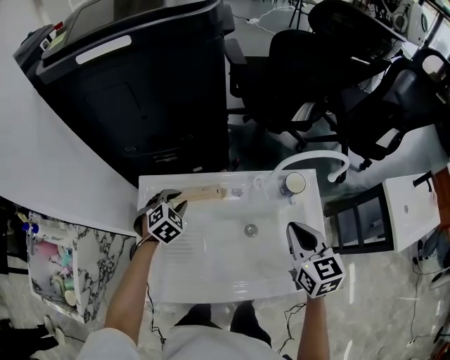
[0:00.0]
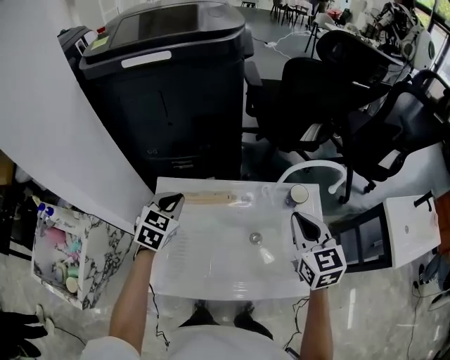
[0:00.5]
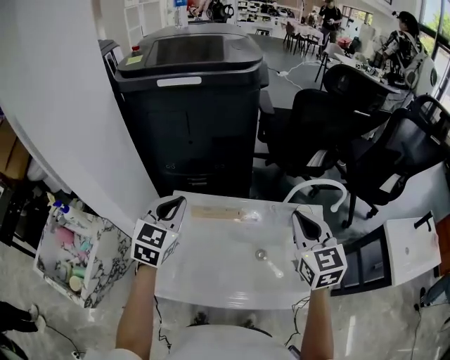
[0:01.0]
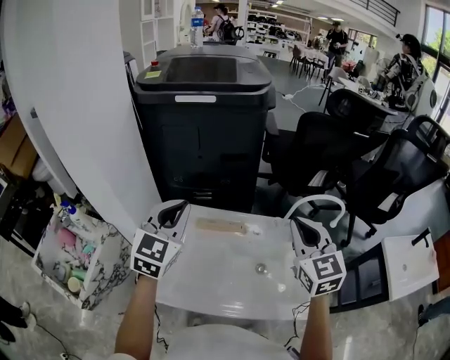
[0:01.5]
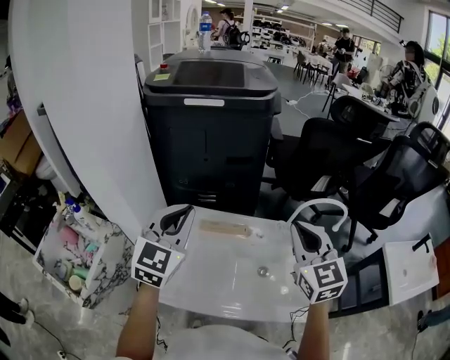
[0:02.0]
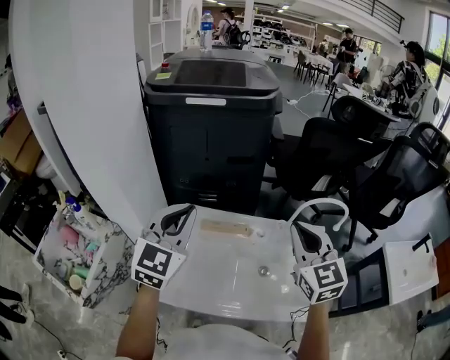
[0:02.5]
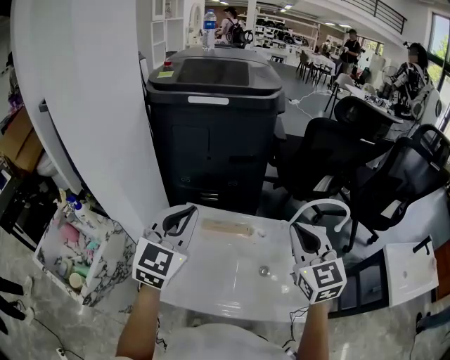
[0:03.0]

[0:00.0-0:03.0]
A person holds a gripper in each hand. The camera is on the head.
0:00.0 to 0:01.5: The right gripper travels upward and to the left by roughly 20 cm, and swivels approximately 30 degrees, while the left gripper moves upward, some 35 cm, angles its fingers upward, by approximately 40 degrees, and closes up.
0:01.5 to 0:03.0: The grippers stay close to where they were, moving slightly.

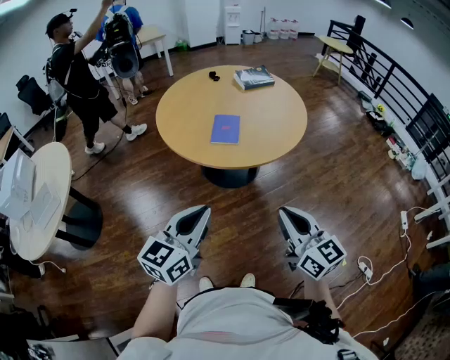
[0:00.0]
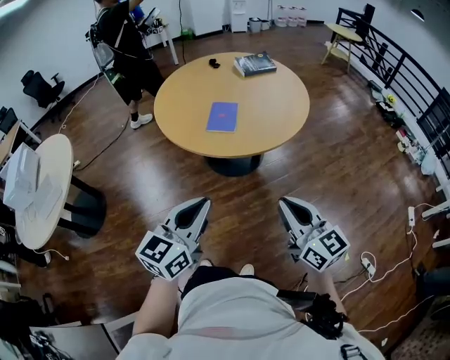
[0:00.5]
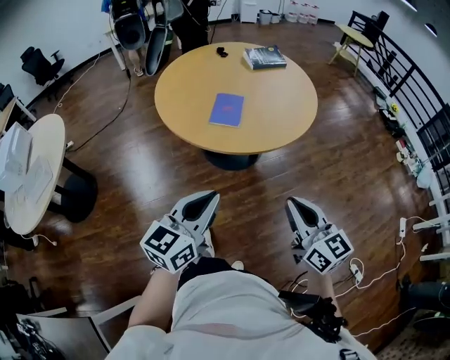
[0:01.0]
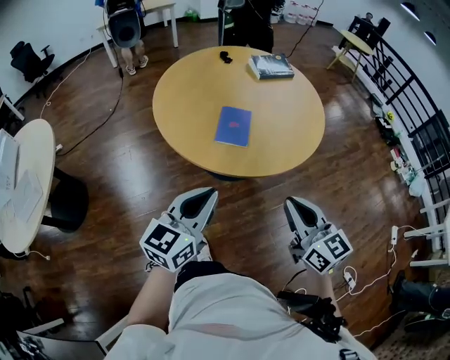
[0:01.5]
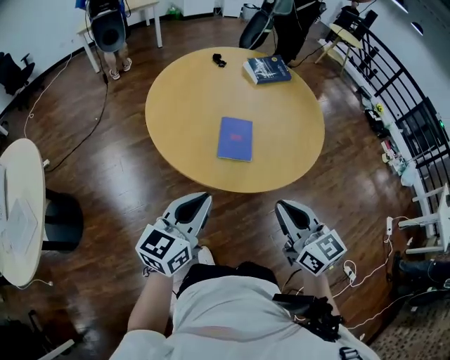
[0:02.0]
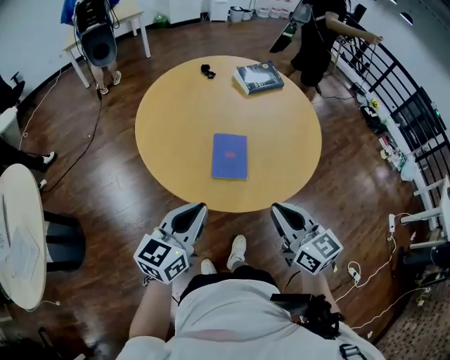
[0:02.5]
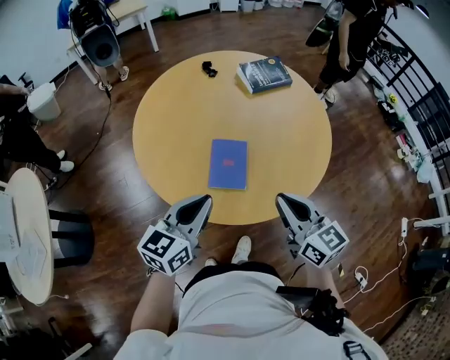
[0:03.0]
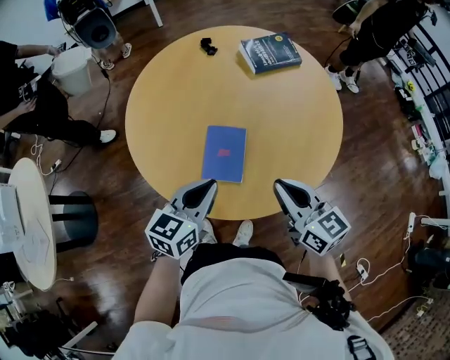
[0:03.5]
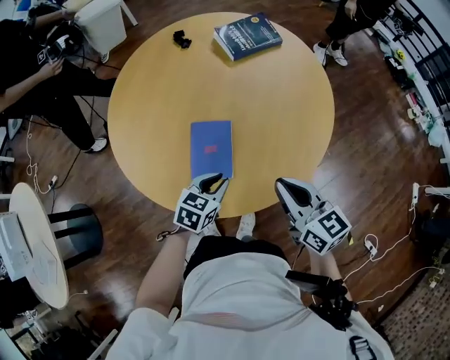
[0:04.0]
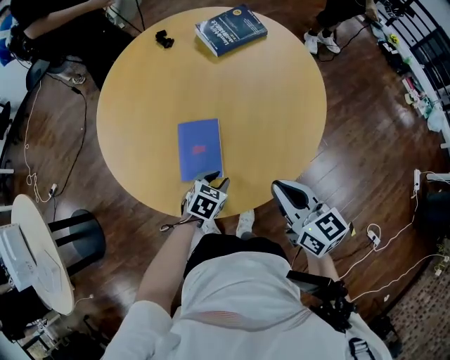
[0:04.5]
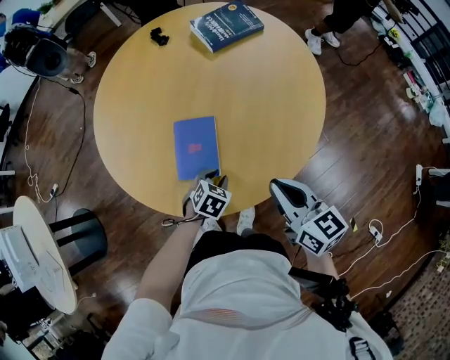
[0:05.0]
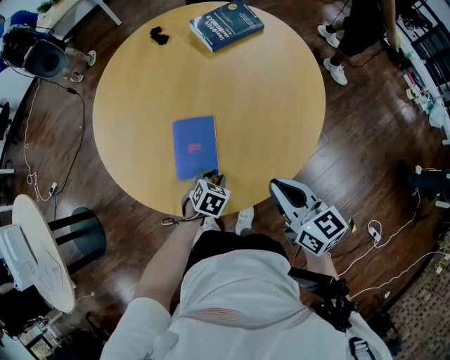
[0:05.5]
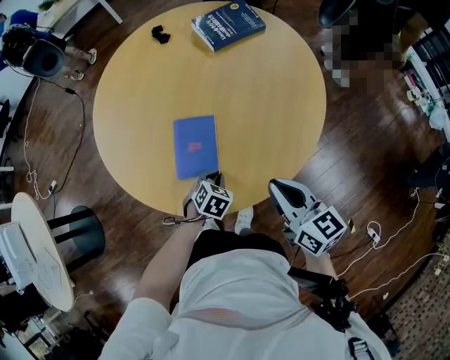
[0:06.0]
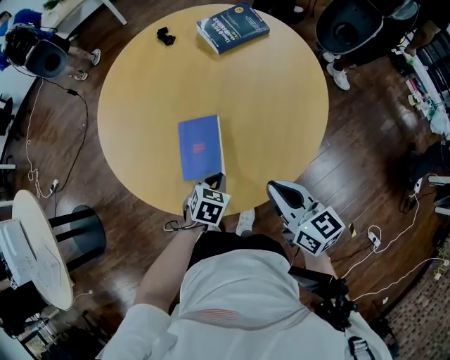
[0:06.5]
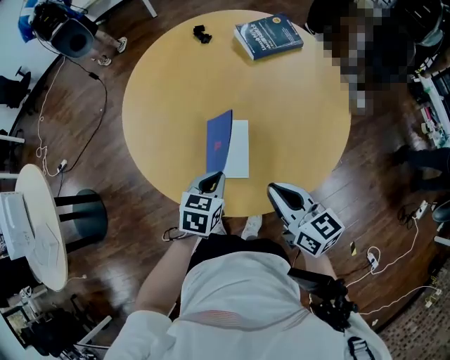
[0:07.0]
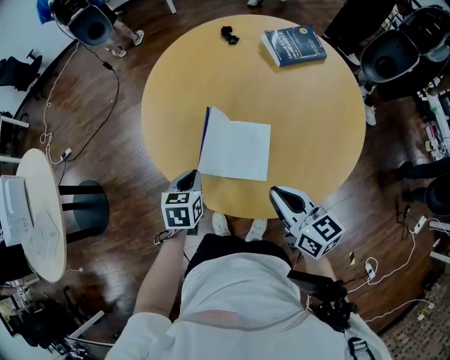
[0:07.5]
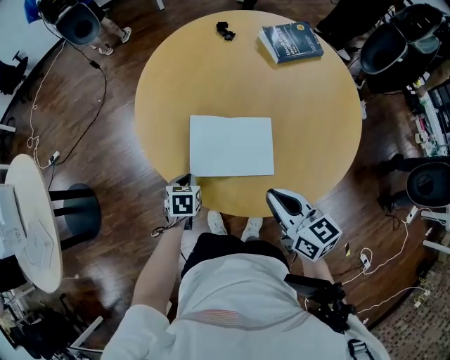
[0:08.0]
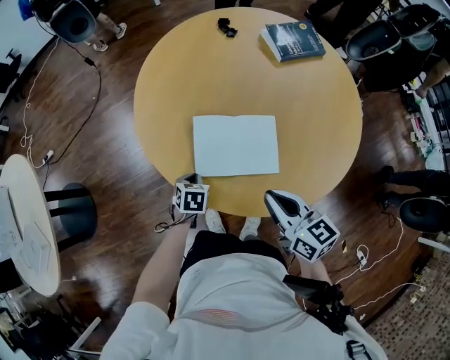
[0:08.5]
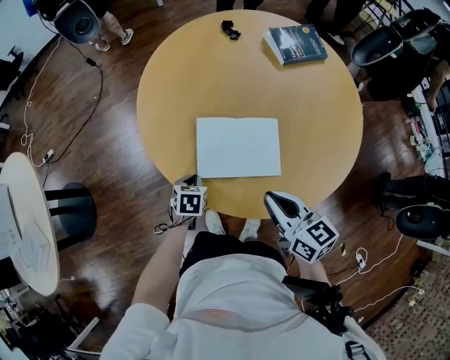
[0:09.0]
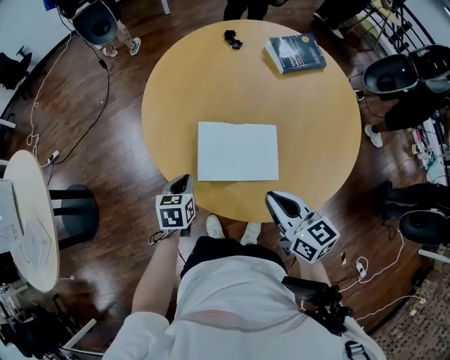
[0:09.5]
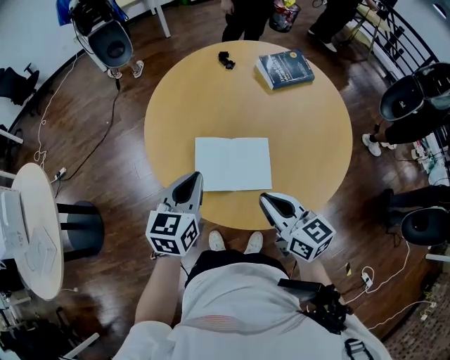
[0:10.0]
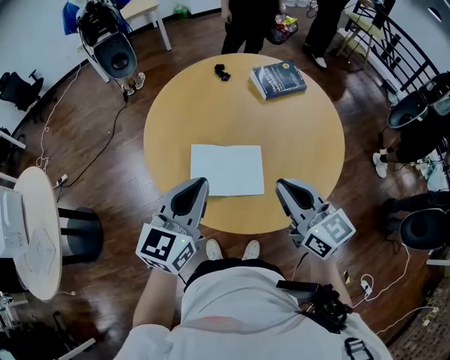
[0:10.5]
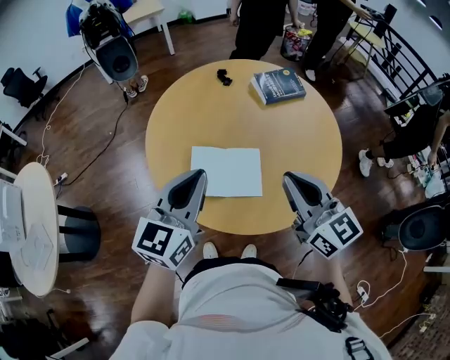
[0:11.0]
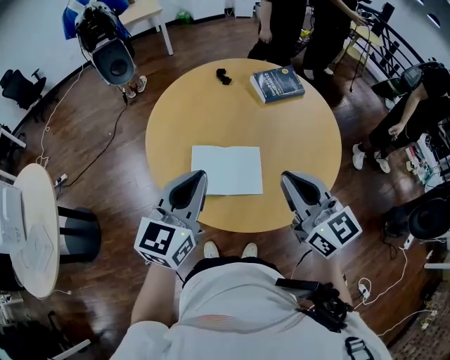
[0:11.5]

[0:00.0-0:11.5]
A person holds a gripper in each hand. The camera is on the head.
0:00.0 to 0:02.0: The right gripper goes roughly 25 cm forward and to the left, while the left gripper travels forward by roughly 25 cm.
0:02.0 to 0:04.0: The left gripper shifts some 40 cm forward, downward and to the right, and tilts its fingers some 40 degrees downward; the right gripper goes some 30 cm forward, to the right and downward.
0:04.0 to 0:06.0: The left gripper heads downward, covering approximately 10 cm, and changes its angle by about 30 degrees.
0:06.0 to 0:07.5: The right gripper shifts approximately 15 cm to the left; the left gripper heads to the left and upward, covering approximately 25 cm, and changes its angle by approximately 40 degrees.
0:07.5 to 0:09.5: The left gripper heads to the left, covering about 5 cm, and travels downward and back again, about 15 cm each way.
0:09.5 to 0:11.5: The left gripper heads upward, covering about 30 cm, and tips its fingers upward by some 40 degrees. Meanwhile the right gripper goes approximately 20 cm upward, and changes its angle by some 30 degrees.

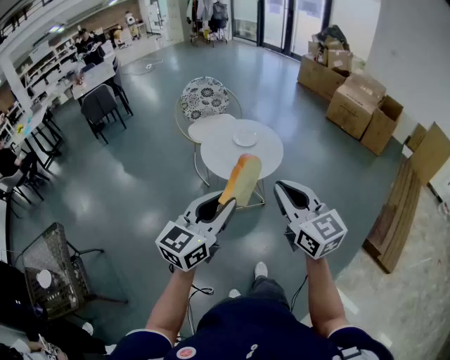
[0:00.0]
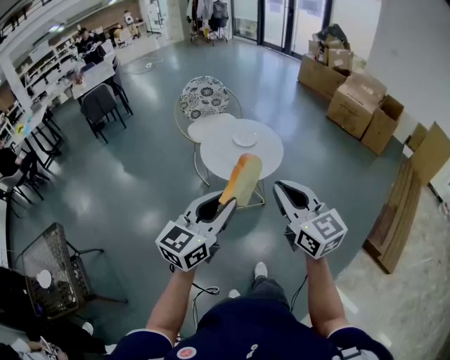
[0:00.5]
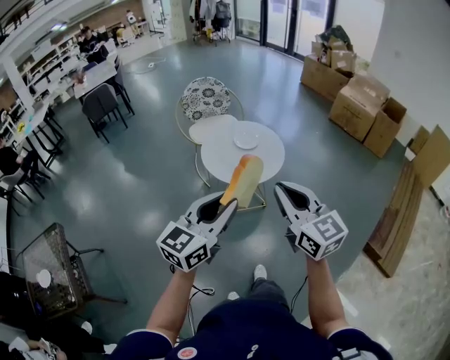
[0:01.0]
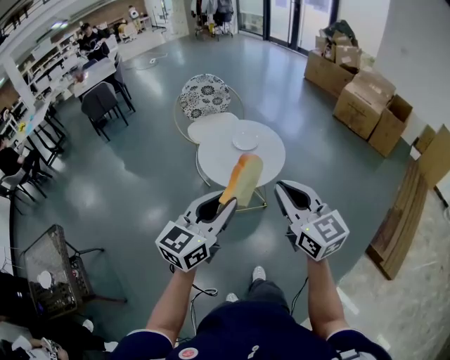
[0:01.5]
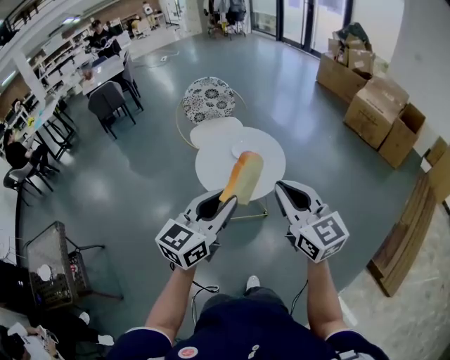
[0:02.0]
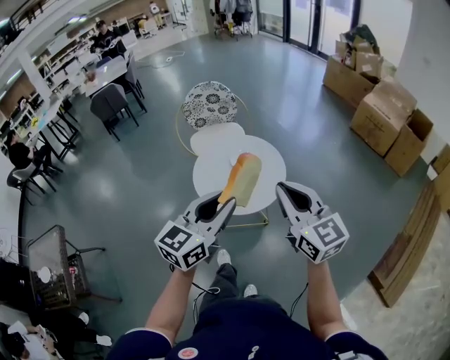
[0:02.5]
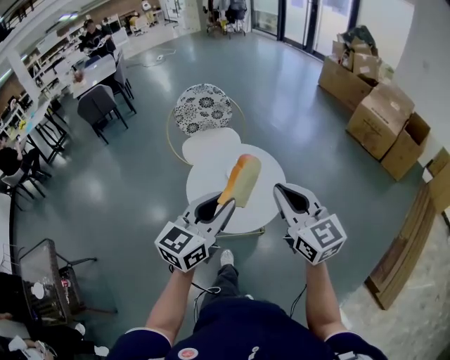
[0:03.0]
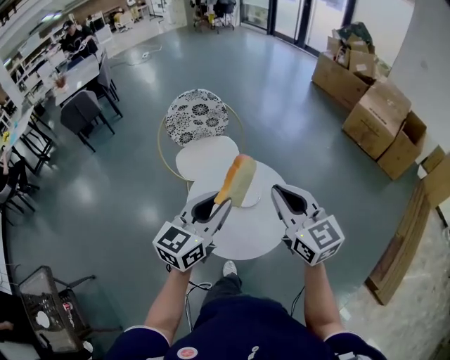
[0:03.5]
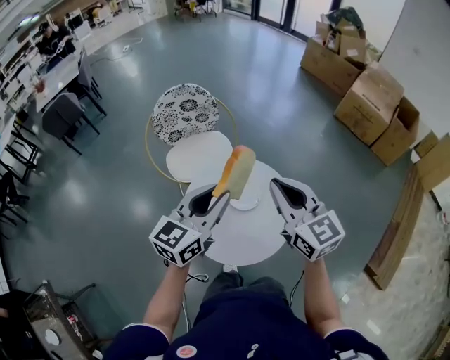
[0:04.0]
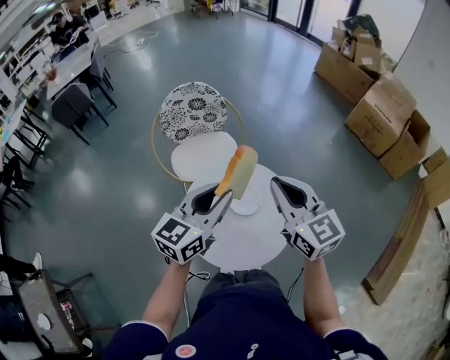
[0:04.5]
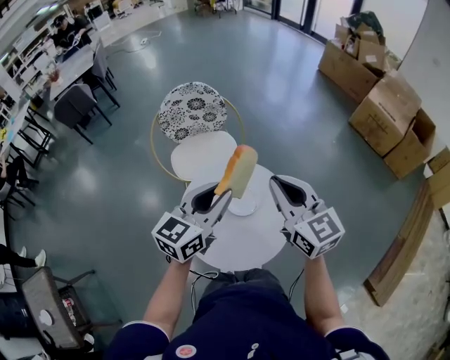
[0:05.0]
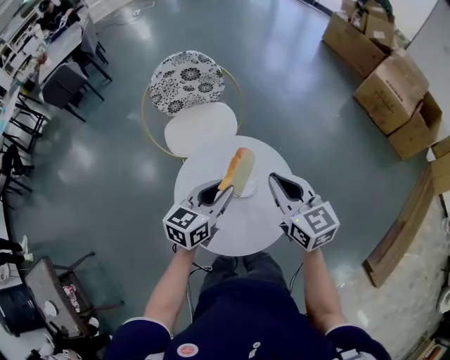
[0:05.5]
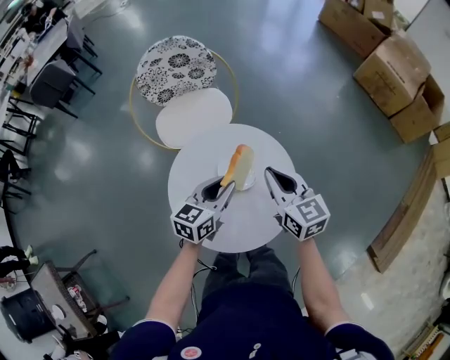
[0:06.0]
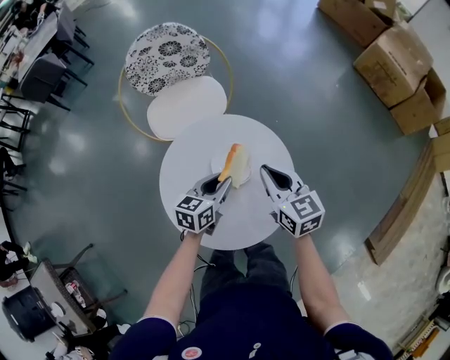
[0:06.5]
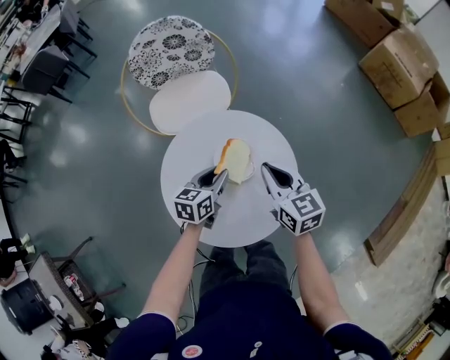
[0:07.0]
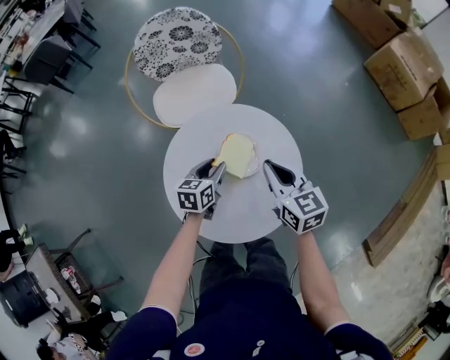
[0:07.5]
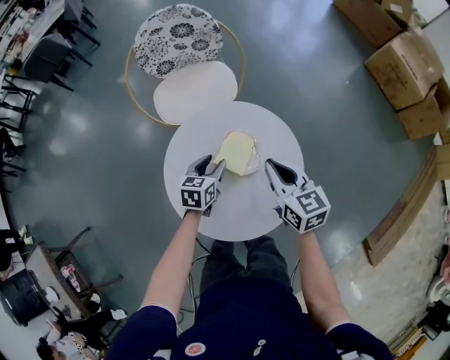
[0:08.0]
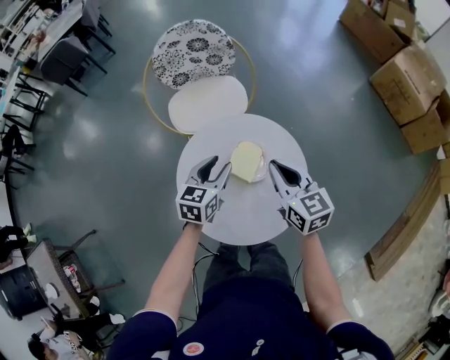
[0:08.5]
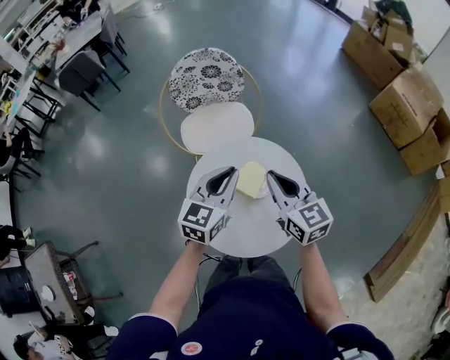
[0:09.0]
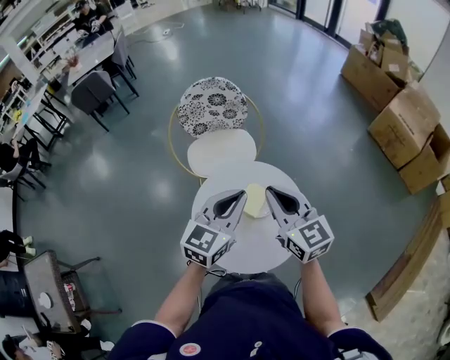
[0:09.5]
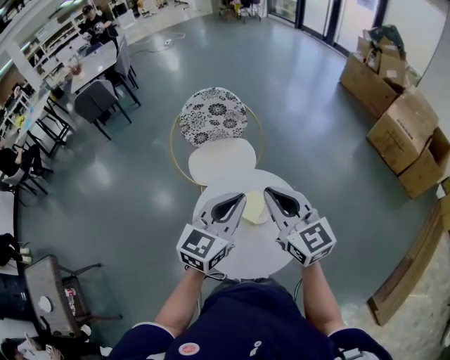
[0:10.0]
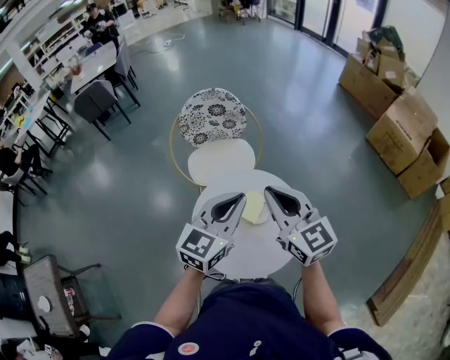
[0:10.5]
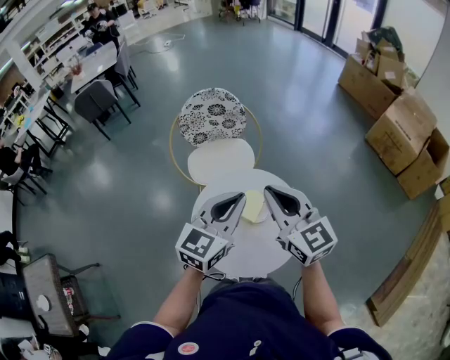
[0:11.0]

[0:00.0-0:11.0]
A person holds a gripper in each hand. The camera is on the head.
0:00.0 to 0:02.0: The grippers both shift forward and to the right by about 15 cm.
0:02.0 to 0:03.5: Both grippers move forward, some 30 cm.
0:03.5 to 0:05.5: The grippers both shift downward and forward by about 20 cm.
0:05.5 to 0:07.5: The left gripper moves downward, some 20 cm, and turns by approximately 30 degrees. The right gripper shifts about 15 cm downward.
0:07.5 to 0:09.0: The right gripper is displaced upward by roughly 10 cm; the left gripper is displaced upward by about 25 cm, rotates about 30 degrees, and closes.
0:09.0 to 0:11.0: The right gripper goes roughly 10 cm upward. Meanwhile the left gripper goes roughly 10 cm upward and backward.

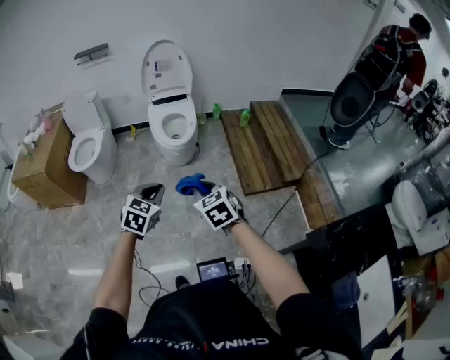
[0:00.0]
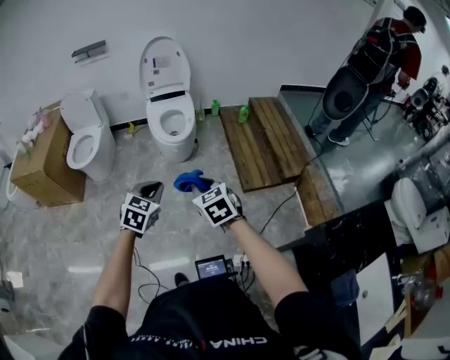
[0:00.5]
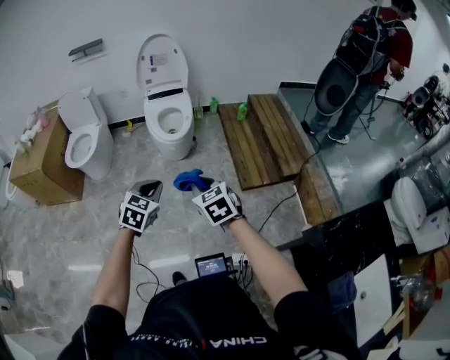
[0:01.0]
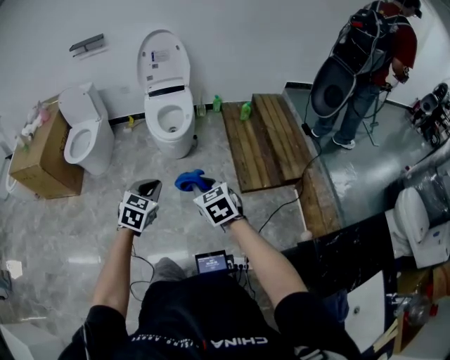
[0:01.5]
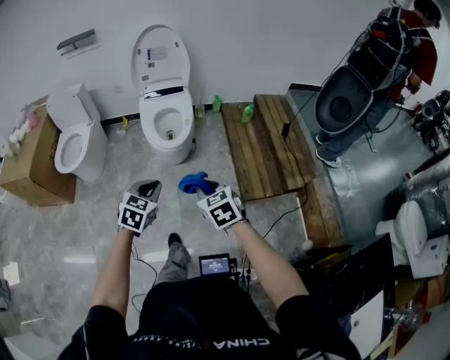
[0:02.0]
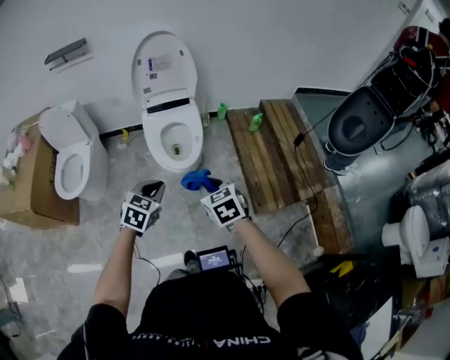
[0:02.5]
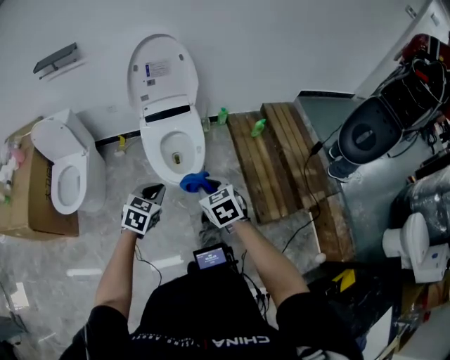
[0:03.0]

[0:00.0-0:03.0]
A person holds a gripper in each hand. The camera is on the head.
0:00.0 to 0:01.5: Both grippers move to the right, some 5 cm.
0:01.5 to 0:03.0: The pair of grippers is taken forward, about 50 cm.
